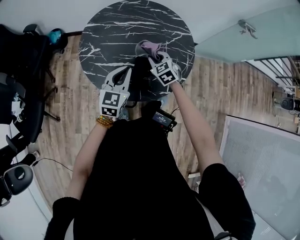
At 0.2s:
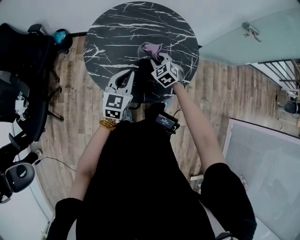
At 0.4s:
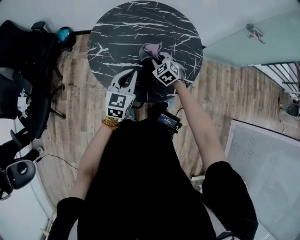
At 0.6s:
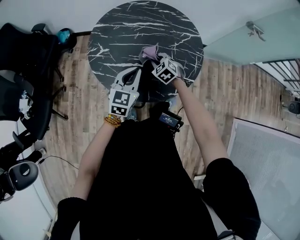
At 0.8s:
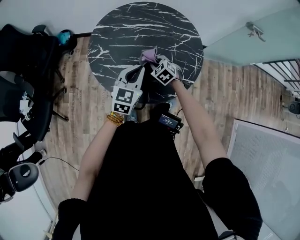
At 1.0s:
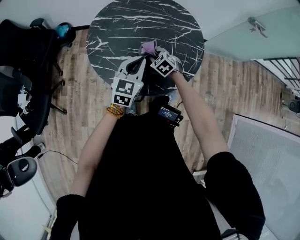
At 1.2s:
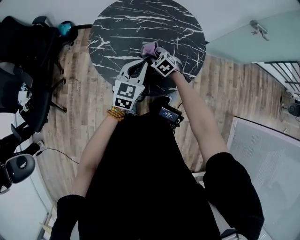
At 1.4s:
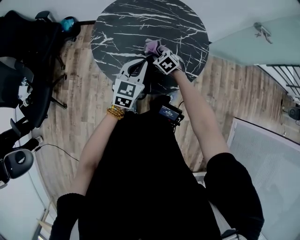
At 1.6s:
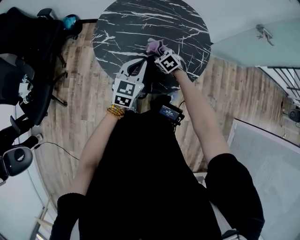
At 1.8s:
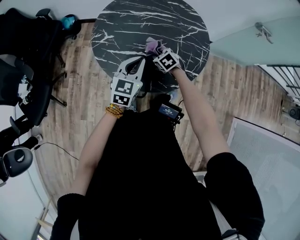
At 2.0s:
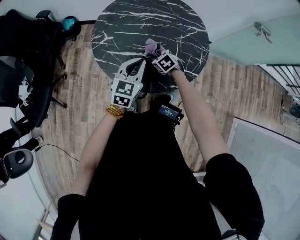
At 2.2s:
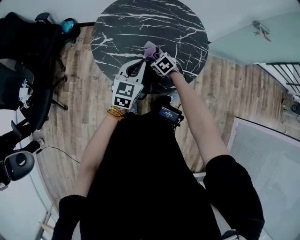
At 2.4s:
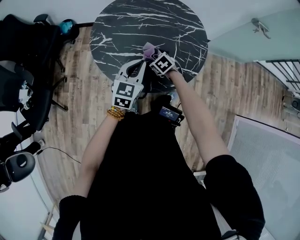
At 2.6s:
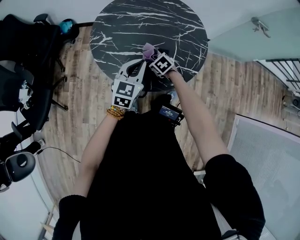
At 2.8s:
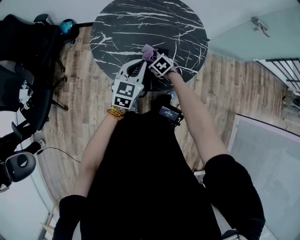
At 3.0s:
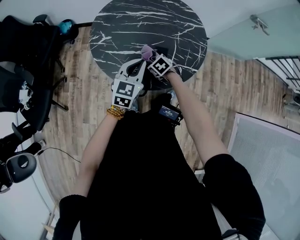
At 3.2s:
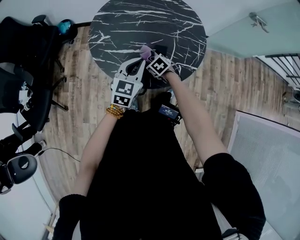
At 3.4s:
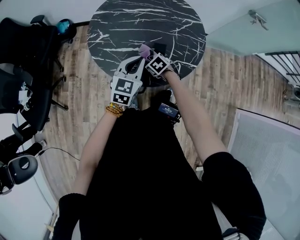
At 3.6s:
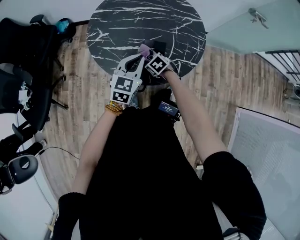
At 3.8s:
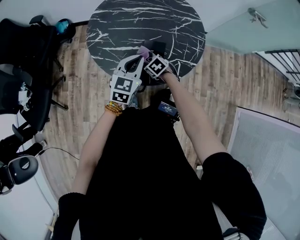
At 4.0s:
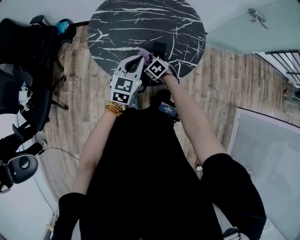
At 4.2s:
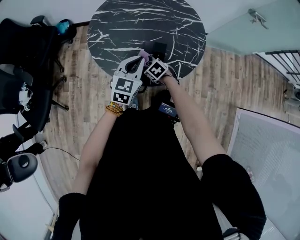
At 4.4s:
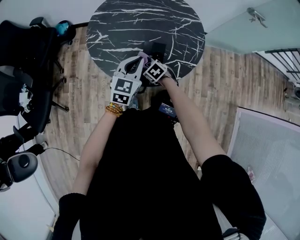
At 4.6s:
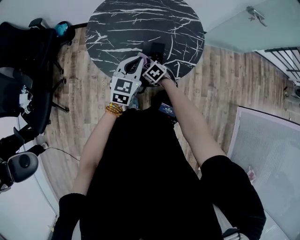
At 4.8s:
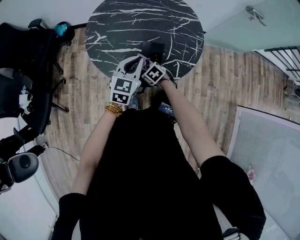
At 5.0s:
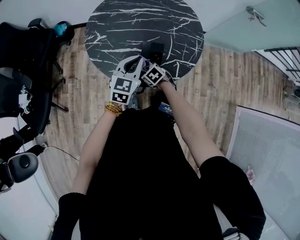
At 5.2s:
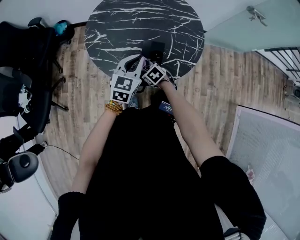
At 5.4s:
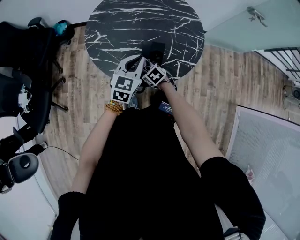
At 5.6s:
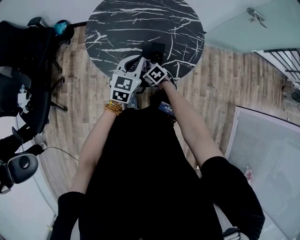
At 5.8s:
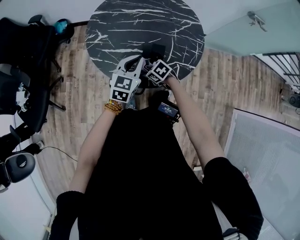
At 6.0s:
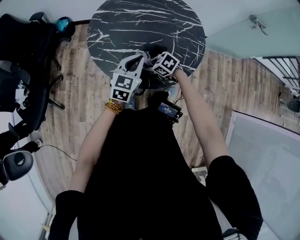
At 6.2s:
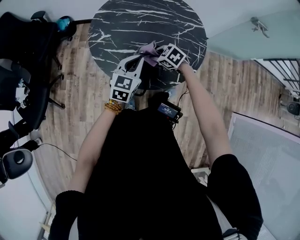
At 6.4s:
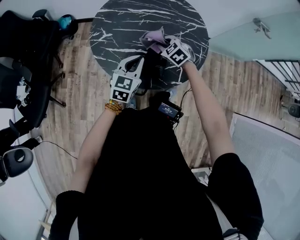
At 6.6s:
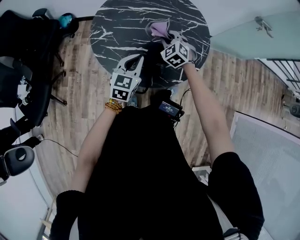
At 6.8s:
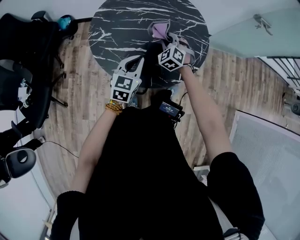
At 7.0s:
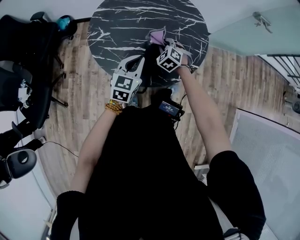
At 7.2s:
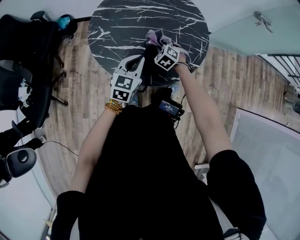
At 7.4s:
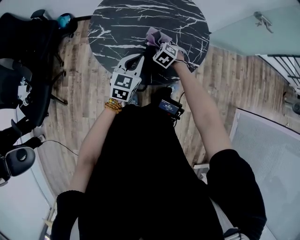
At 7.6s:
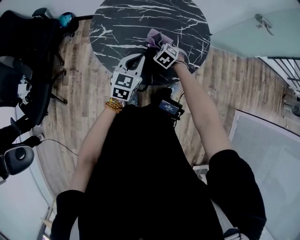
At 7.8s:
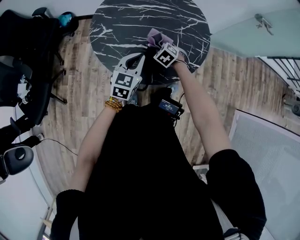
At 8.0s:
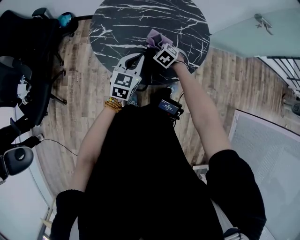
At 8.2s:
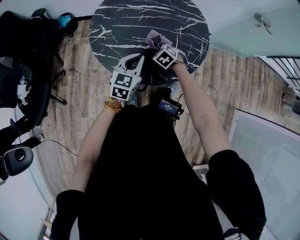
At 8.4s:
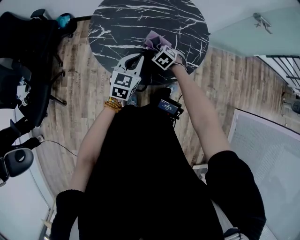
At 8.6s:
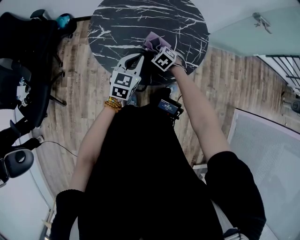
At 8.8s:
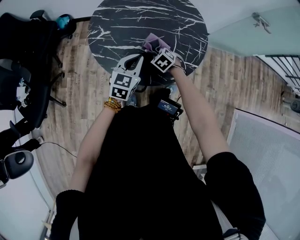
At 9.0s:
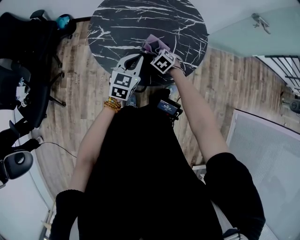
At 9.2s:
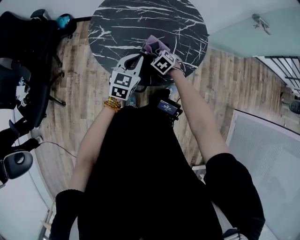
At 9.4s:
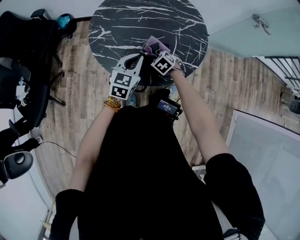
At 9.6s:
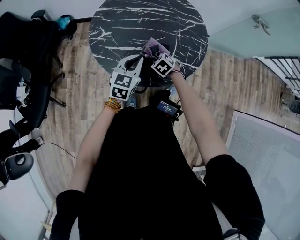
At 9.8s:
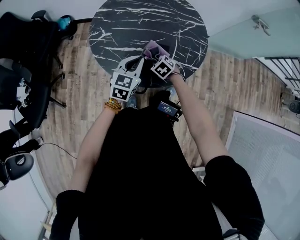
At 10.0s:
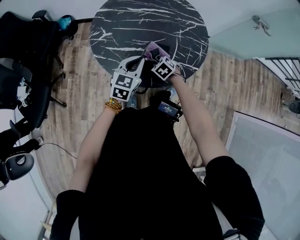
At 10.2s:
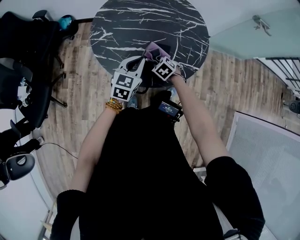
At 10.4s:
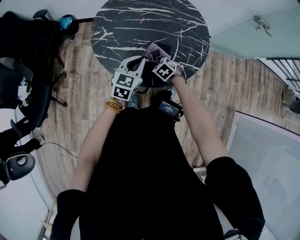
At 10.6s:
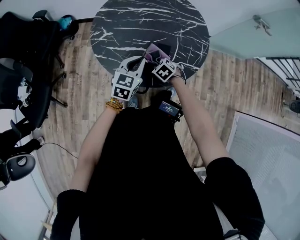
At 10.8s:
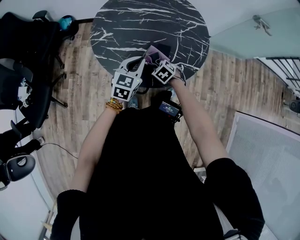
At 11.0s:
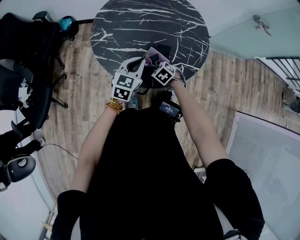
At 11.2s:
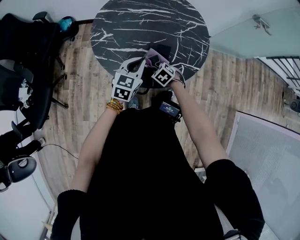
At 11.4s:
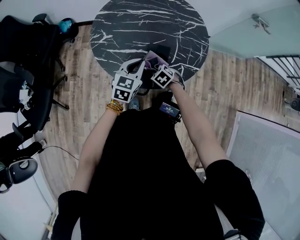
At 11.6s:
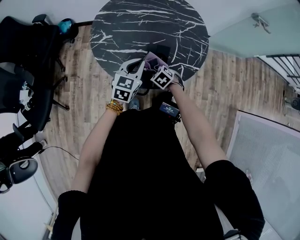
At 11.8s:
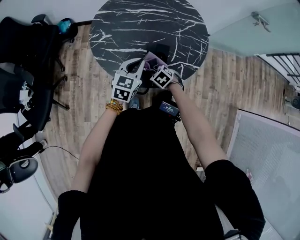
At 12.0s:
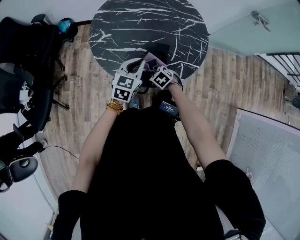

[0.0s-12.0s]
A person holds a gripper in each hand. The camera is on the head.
0.0s to 1.6s: The right gripper shifts approximately 10 cm downward.
1.6s to 3.0s: The right gripper travels backward by roughly 5 cm.
3.0s to 4.4s: The right gripper goes roughly 5 cm backward.
4.4s to 6.0s: The right gripper travels upward by some 5 cm.
6.0s to 7.6s: The right gripper reaches approximately 10 cm upward, then returns, and rotates some 30 degrees.
7.6s to 9.0s: The grippers make only small movements.
9.0s to 10.4s: The grippers move only a little.
10.4s to 12.0s: The right gripper shifts by some 5 cm.

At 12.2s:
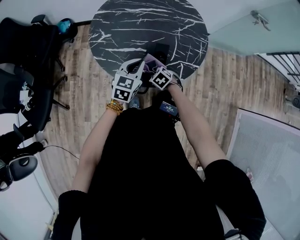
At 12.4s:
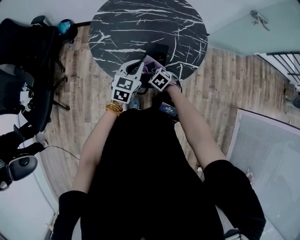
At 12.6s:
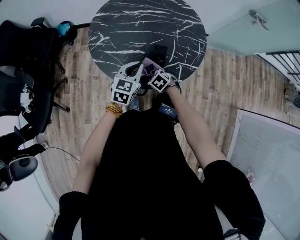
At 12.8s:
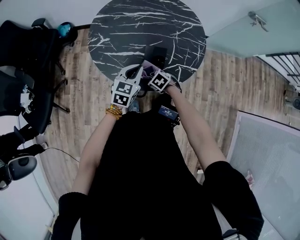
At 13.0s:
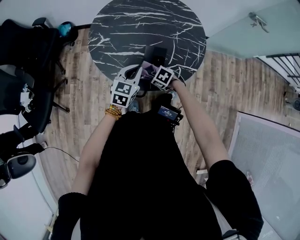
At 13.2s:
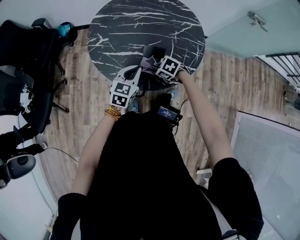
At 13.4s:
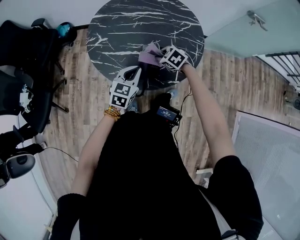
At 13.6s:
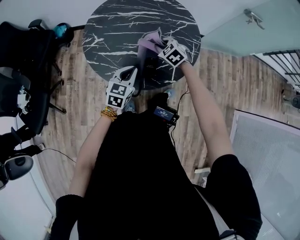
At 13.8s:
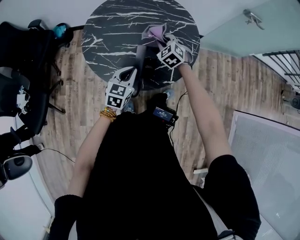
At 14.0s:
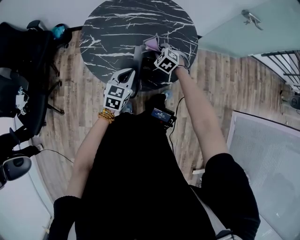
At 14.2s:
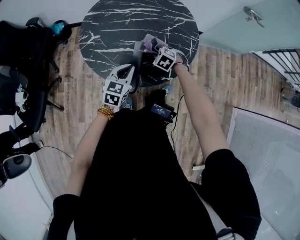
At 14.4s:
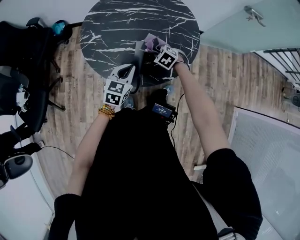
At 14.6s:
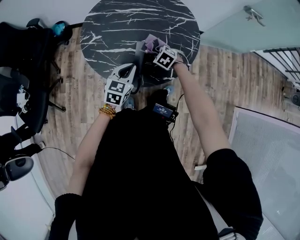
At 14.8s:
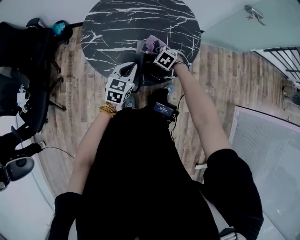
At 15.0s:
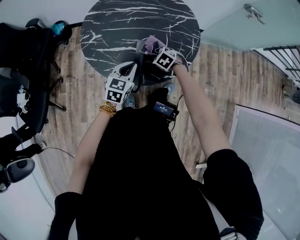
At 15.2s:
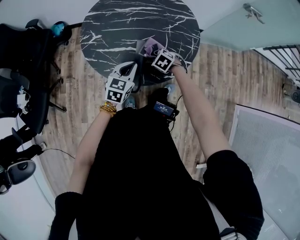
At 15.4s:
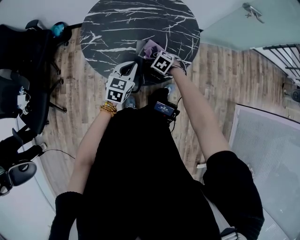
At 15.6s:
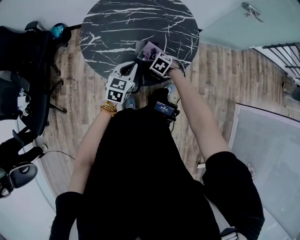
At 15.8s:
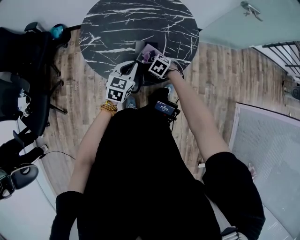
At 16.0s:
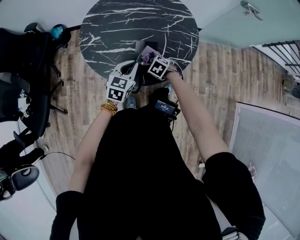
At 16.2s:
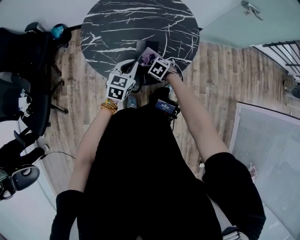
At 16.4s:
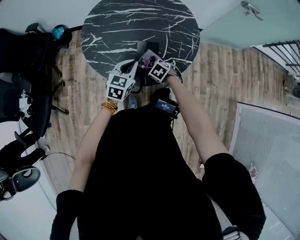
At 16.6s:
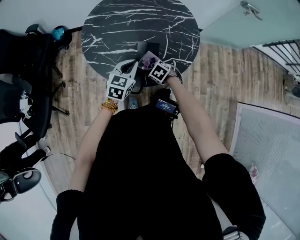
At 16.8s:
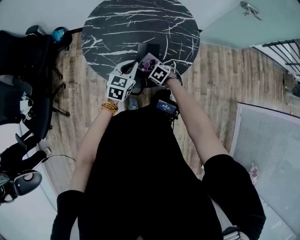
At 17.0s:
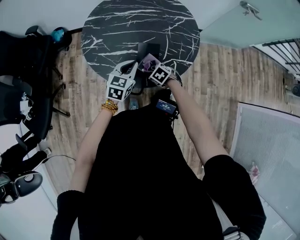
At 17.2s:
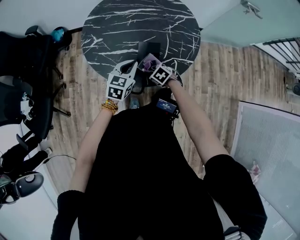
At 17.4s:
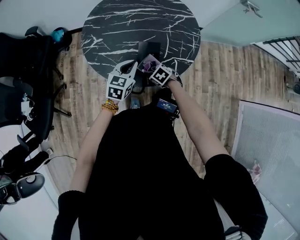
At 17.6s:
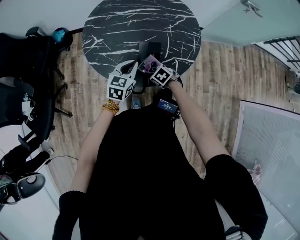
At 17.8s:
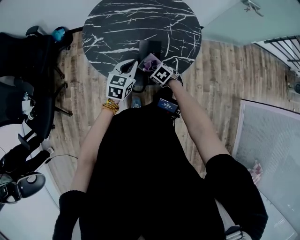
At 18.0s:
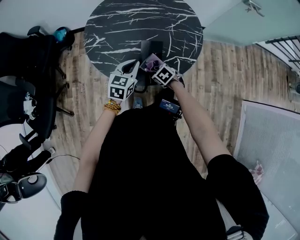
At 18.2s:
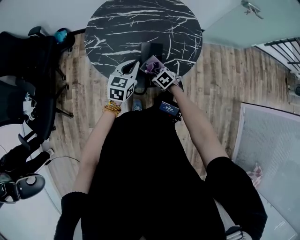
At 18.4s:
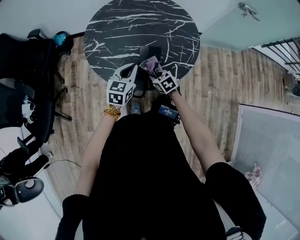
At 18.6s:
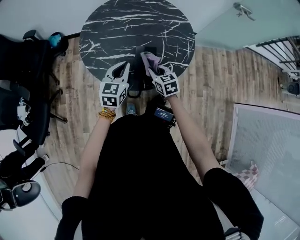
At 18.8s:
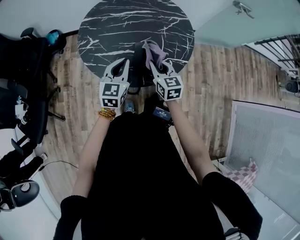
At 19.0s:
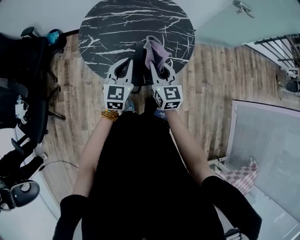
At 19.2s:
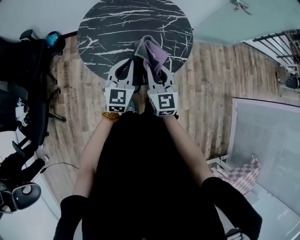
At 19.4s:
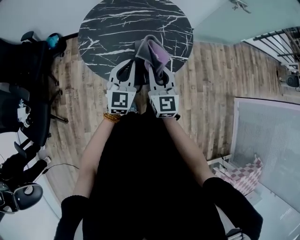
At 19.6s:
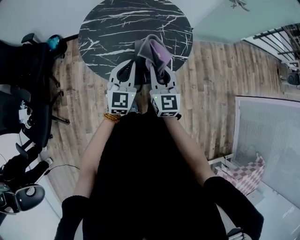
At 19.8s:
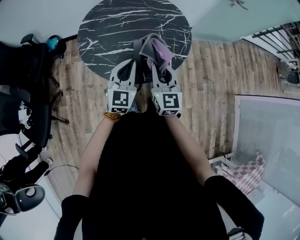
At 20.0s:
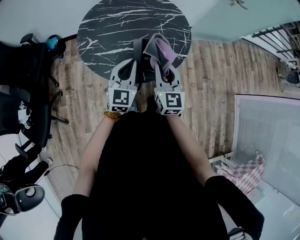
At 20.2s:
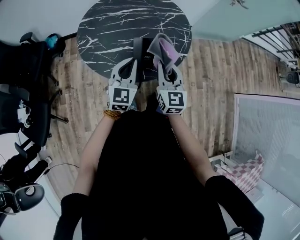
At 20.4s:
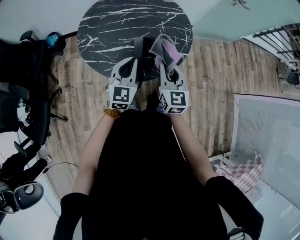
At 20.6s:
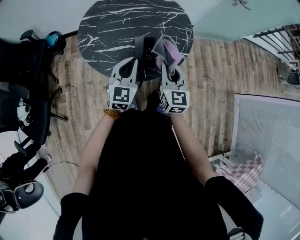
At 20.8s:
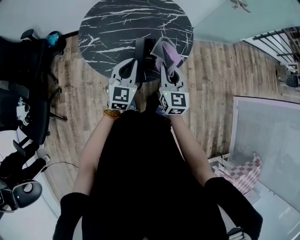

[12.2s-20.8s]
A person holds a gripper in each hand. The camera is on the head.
12.2s to 13.6s: The right gripper shifts by roughly 20 cm, and turns by roughly 20 degrees.
13.6s to 15.0s: The right gripper moves downward and backward, approximately 10 cm.
15.0s to 16.6s: The right gripper shifts by some 10 cm.
16.6s to 18.0s: The grippers move only a little.
18.0s to 19.4s: The right gripper shifts some 30 cm upward, and angles its fingers upward, by approximately 60 degrees, while the left gripper heads upward, covering about 10 cm, and changes its angle by roughly 30 degrees.
19.4s to 20.8s: The right gripper moves roughly 5 cm.

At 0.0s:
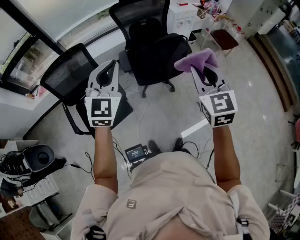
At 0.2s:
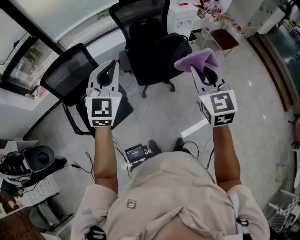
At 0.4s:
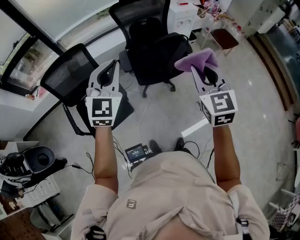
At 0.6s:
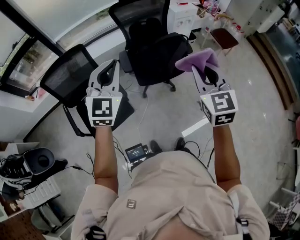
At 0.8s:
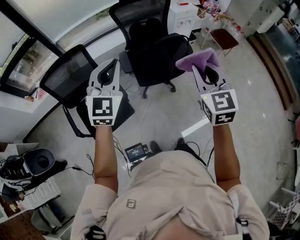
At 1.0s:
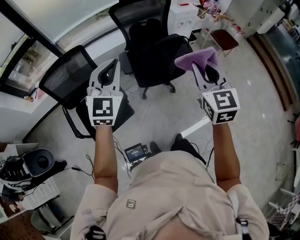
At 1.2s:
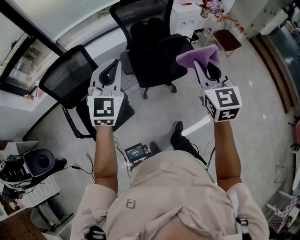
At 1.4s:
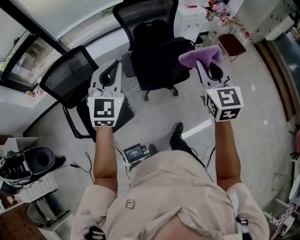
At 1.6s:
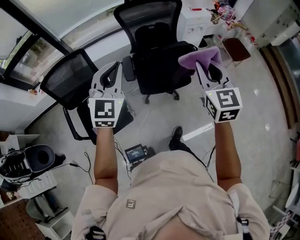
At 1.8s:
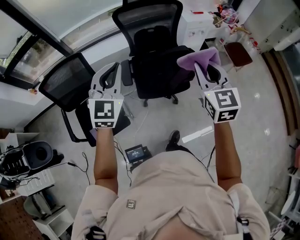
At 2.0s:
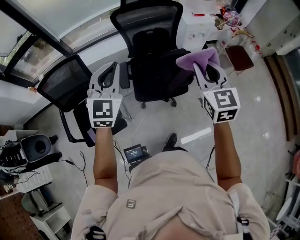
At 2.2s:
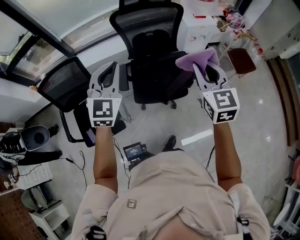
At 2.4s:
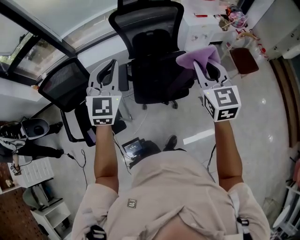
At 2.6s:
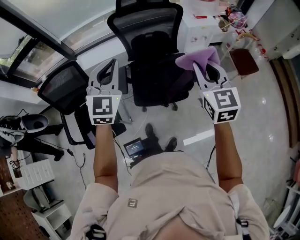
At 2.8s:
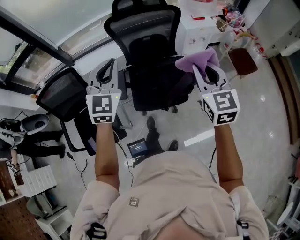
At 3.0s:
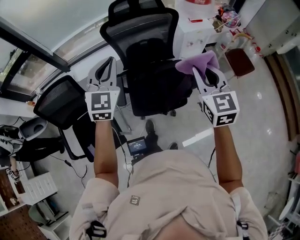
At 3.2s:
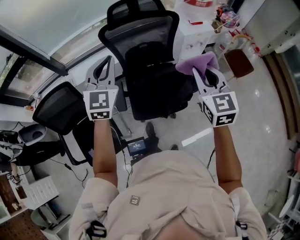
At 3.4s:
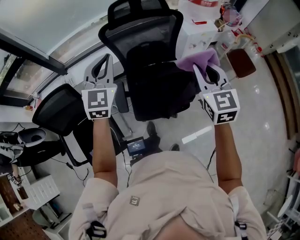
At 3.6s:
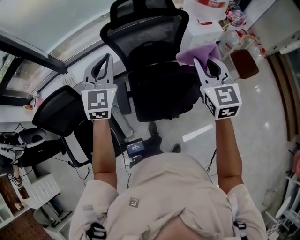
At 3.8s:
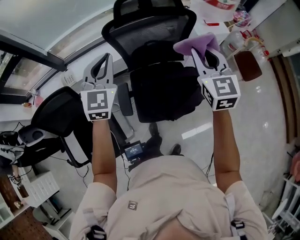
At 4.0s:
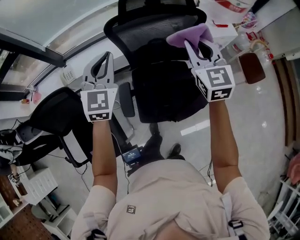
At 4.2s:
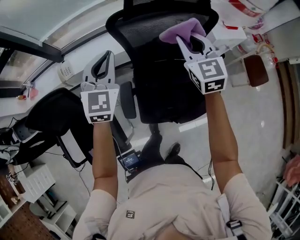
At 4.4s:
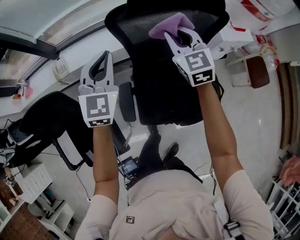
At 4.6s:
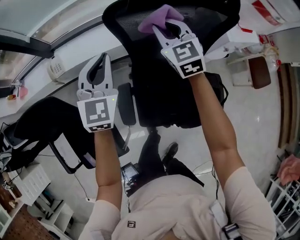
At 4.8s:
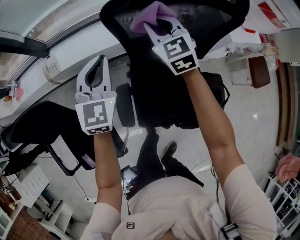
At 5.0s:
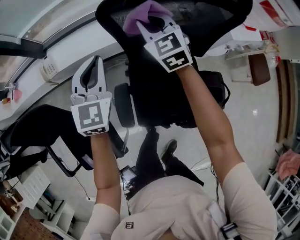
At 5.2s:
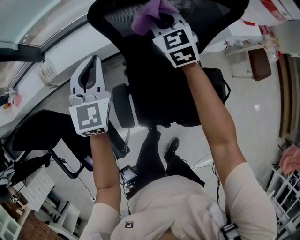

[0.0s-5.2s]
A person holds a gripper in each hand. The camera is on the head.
0.0s to 1.8s: The two grippers go approximately 20 cm forward.
1.8s to 3.4s: Both grippers travel together forward, approximately 25 cm.
3.4s to 5.2s: The left gripper is displaced downward, forward and to the left by approximately 35 cm, while the right gripper is displaced forward, downward and to the left by roughly 50 cm.
